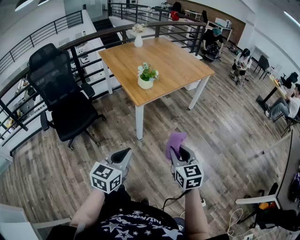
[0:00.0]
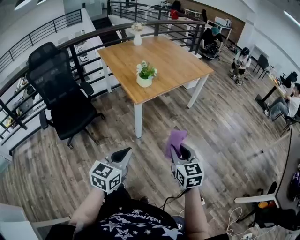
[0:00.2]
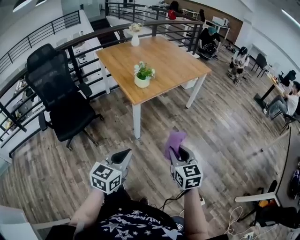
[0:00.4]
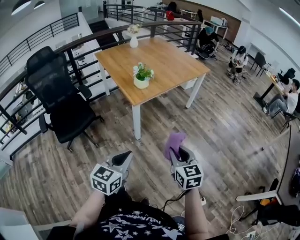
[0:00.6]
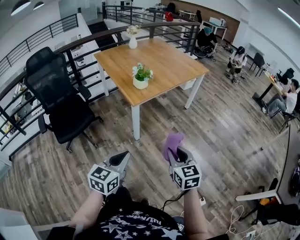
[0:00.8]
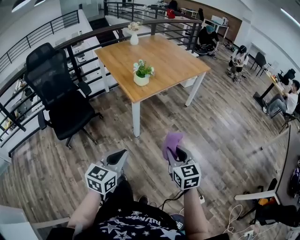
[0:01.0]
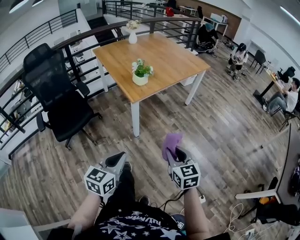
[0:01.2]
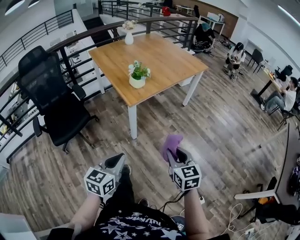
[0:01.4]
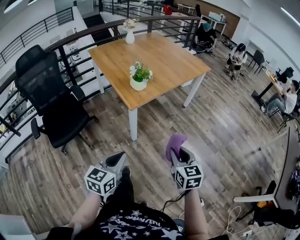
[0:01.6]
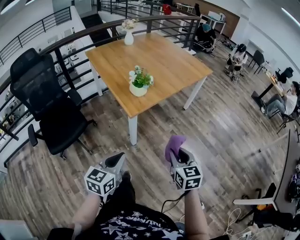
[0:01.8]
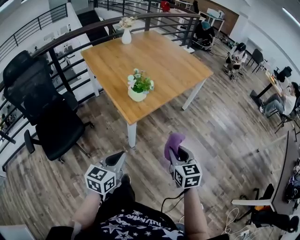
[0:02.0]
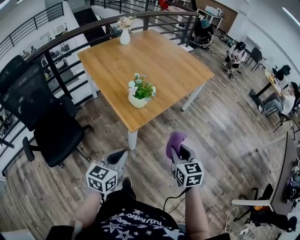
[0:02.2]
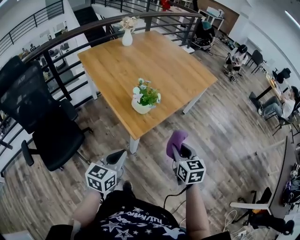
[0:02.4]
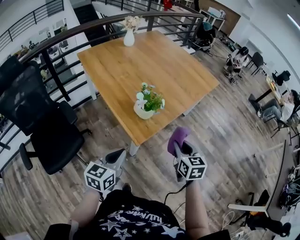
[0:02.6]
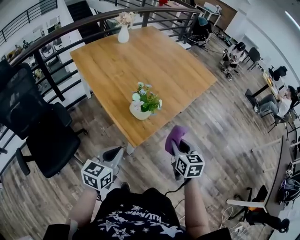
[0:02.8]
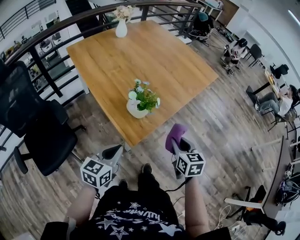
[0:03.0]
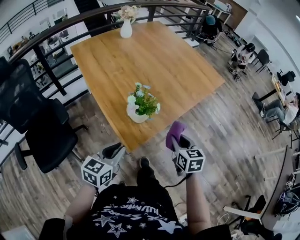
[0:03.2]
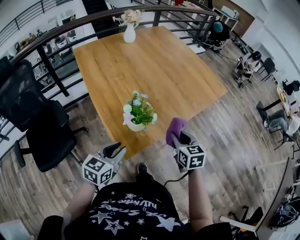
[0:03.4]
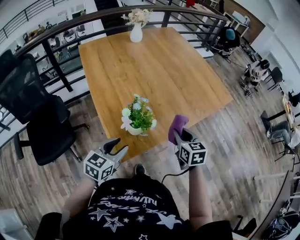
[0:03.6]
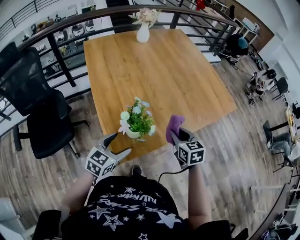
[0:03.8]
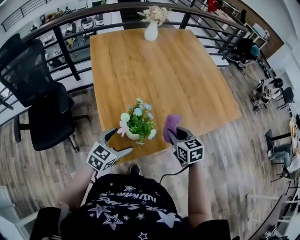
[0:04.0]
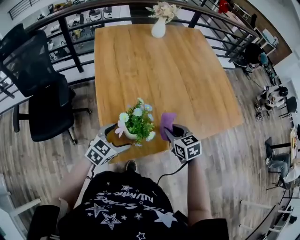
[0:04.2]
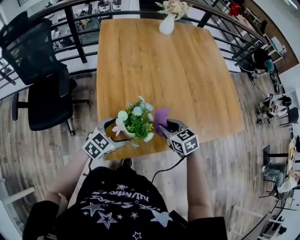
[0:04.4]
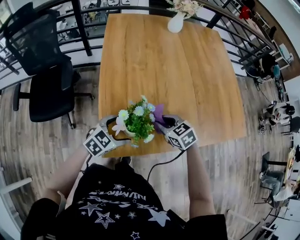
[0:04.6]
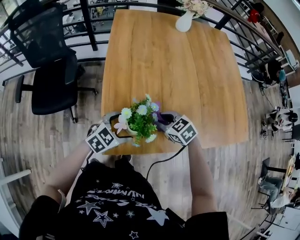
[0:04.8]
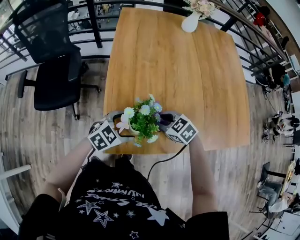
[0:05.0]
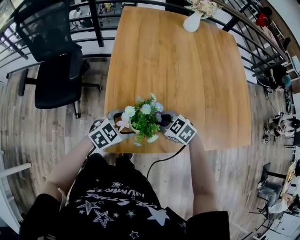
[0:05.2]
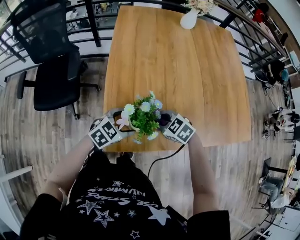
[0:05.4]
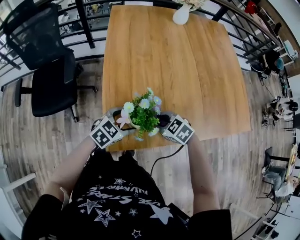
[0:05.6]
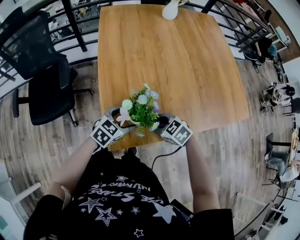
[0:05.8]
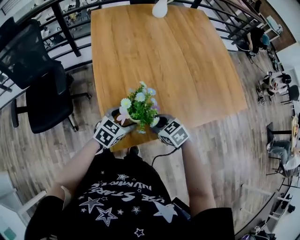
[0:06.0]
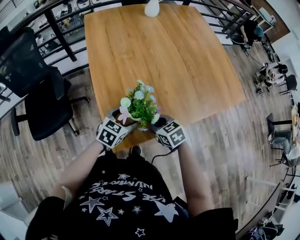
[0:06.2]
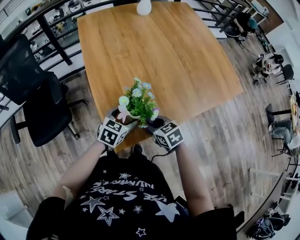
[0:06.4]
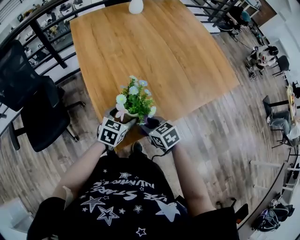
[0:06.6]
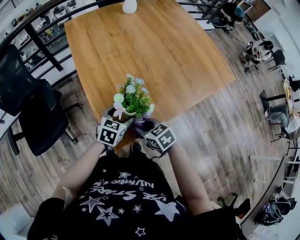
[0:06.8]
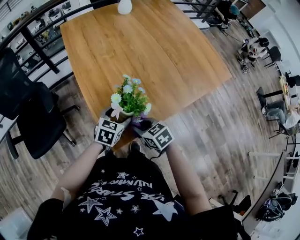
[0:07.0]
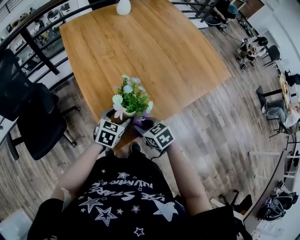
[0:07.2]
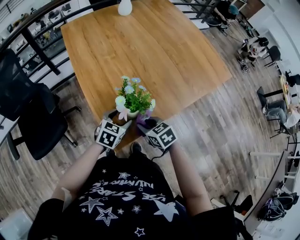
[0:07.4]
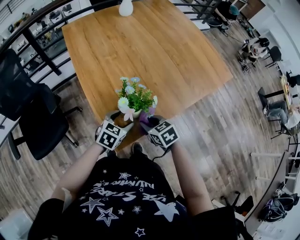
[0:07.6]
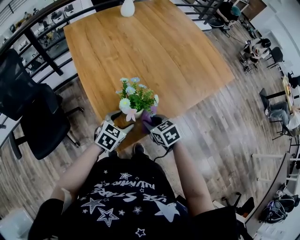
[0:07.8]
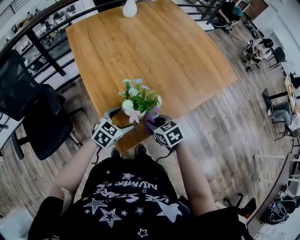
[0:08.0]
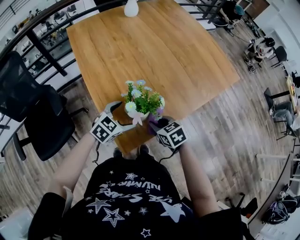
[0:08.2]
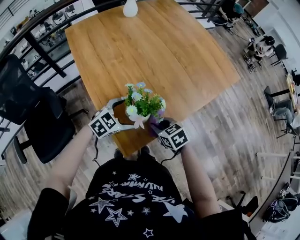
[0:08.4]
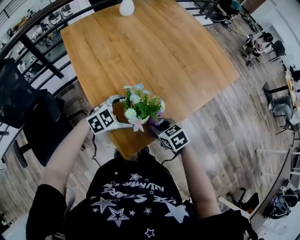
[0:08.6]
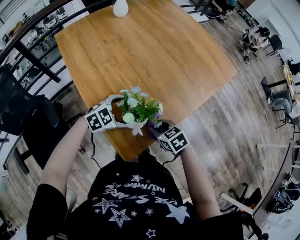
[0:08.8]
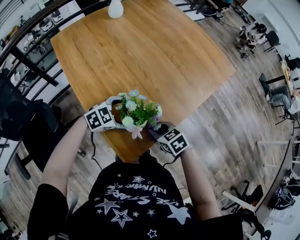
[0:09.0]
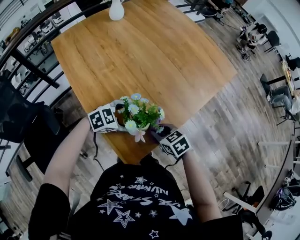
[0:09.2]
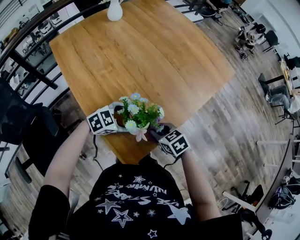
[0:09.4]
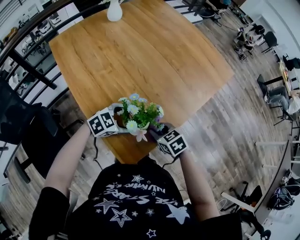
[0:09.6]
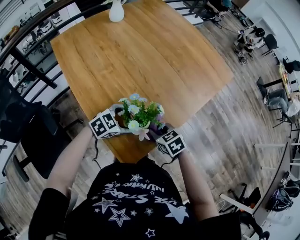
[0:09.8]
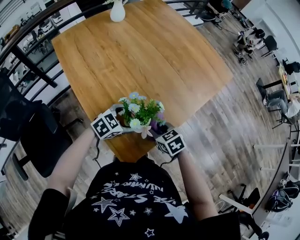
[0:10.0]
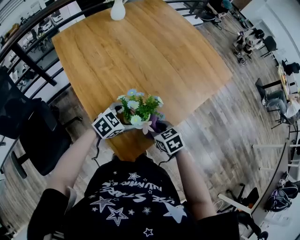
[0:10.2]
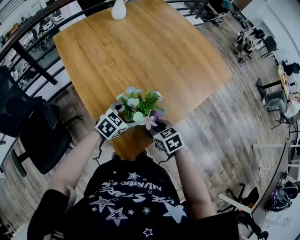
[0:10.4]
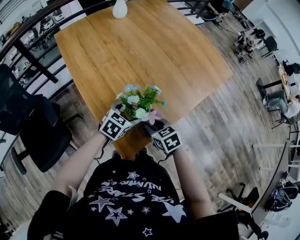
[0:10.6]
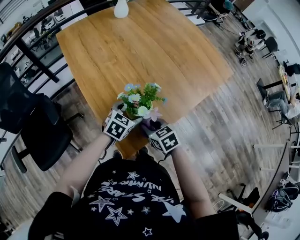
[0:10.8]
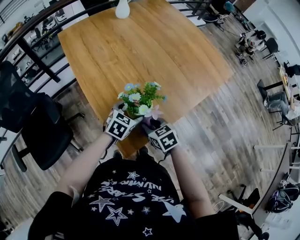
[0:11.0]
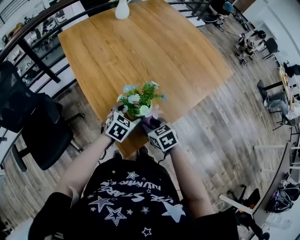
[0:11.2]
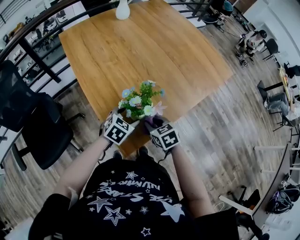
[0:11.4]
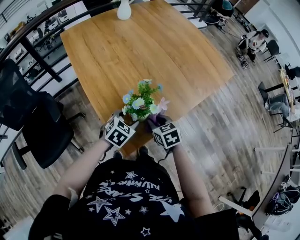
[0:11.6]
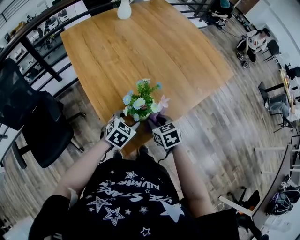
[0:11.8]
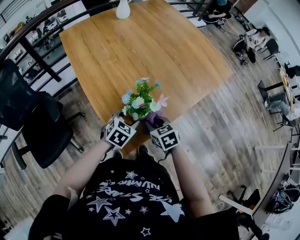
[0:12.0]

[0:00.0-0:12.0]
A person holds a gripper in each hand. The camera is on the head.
0:00.0 to 0:01.6: The grippers both shift forward by about 5 cm.
0:01.6 to 0:03.0: Both grippers move forward, some 30 cm.
0:03.0 to 0:04.4: The right gripper moves some 30 cm, and rotates some 60 degrees, while the left gripper moves some 25 cm, and opens.
0:04.4 to 0:06.0: The right gripper moves about 10 cm.
0:06.0 to 0:07.6: The right gripper swivels approximately 20 degrees.
0:07.6 to 0:09.0: The left gripper changes place by about 5 cm, swivels about 40 degrees, and opens its fingers.
0:09.0 to 0:10.4: The left gripper changes its angle by roughly 20 degrees.
0:10.4 to 0:12.0: The left gripper moves backward, roughly 5 cm.

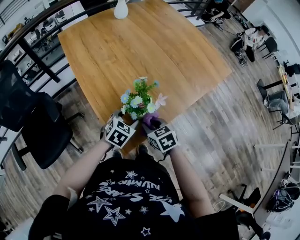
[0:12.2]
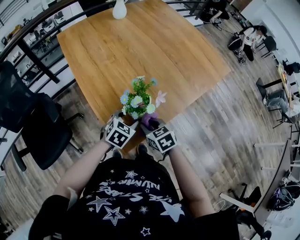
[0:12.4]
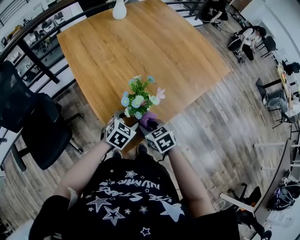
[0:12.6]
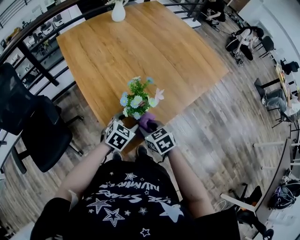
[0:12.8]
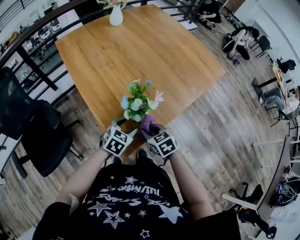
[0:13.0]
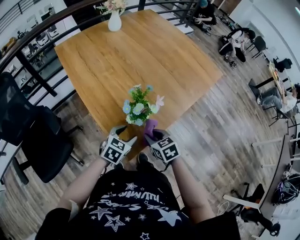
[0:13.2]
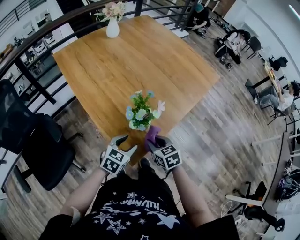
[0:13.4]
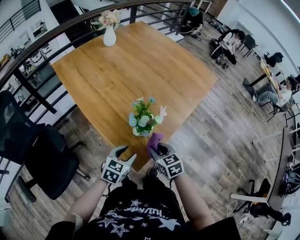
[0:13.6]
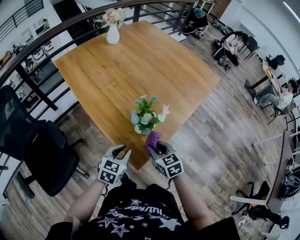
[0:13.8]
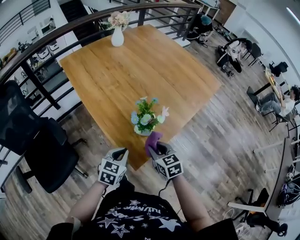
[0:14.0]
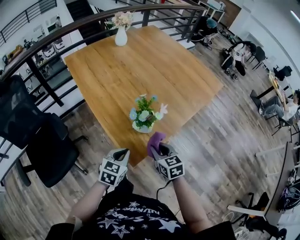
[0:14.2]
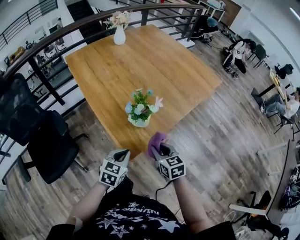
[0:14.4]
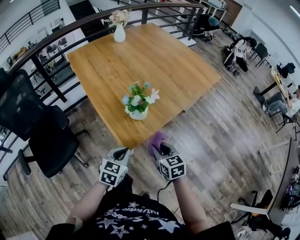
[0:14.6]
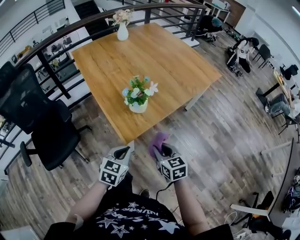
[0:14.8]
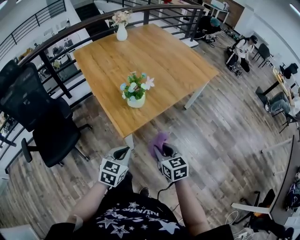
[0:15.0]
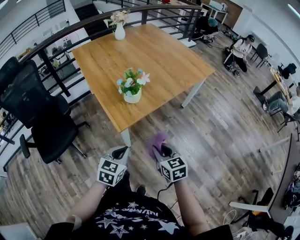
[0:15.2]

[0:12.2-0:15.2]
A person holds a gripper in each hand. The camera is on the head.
0:12.2 to 0:13.8: The left gripper is displaced backward and to the left by roughly 10 cm. Meanwhile the right gripper changes place by approximately 5 cm.
0:13.8 to 0:15.2: Both grippers travel together backward and to the right, some 25 cm.

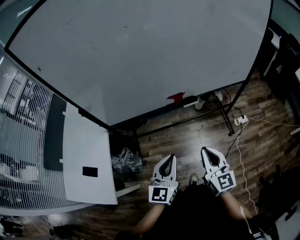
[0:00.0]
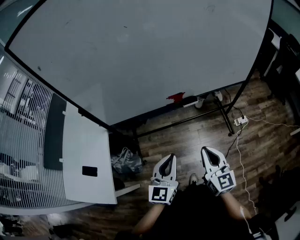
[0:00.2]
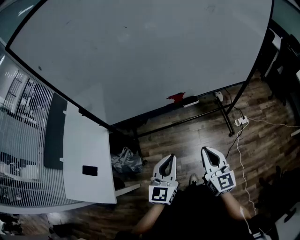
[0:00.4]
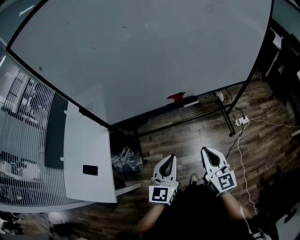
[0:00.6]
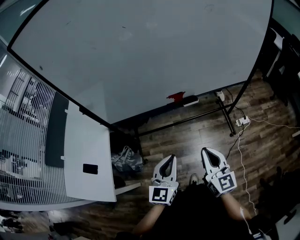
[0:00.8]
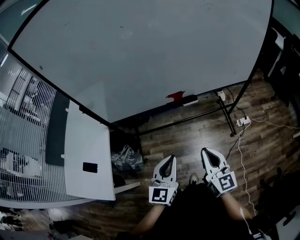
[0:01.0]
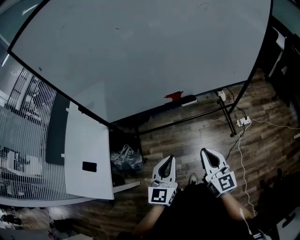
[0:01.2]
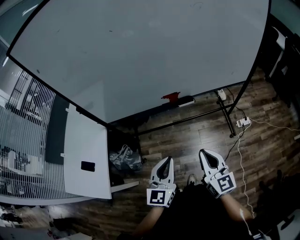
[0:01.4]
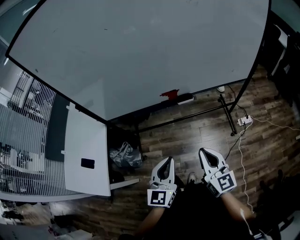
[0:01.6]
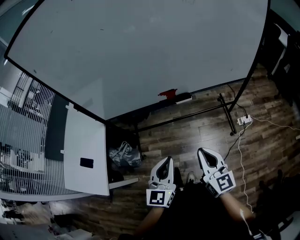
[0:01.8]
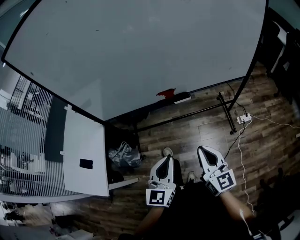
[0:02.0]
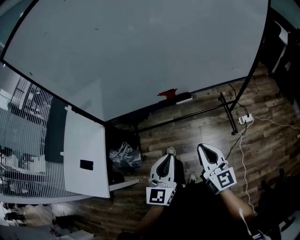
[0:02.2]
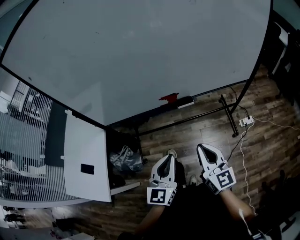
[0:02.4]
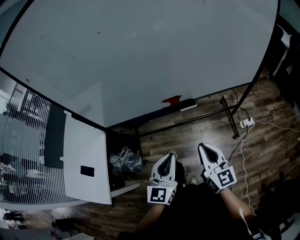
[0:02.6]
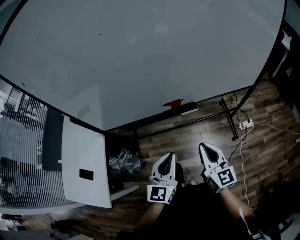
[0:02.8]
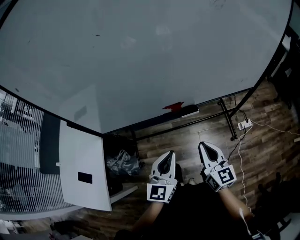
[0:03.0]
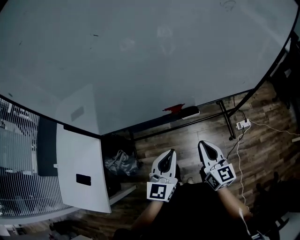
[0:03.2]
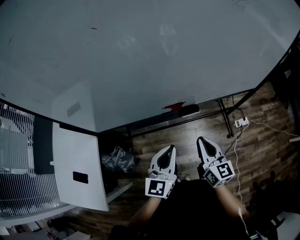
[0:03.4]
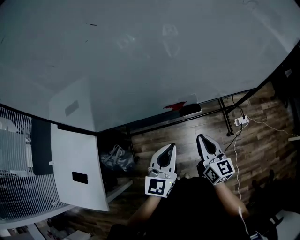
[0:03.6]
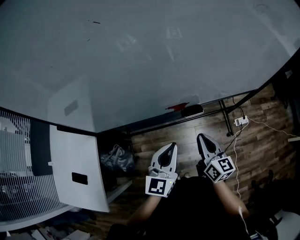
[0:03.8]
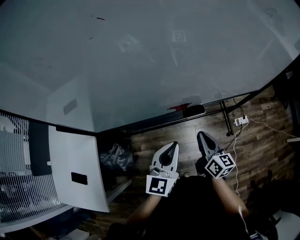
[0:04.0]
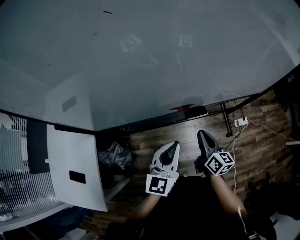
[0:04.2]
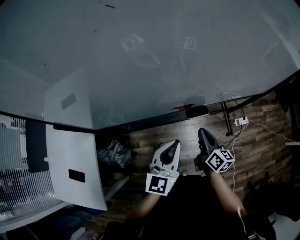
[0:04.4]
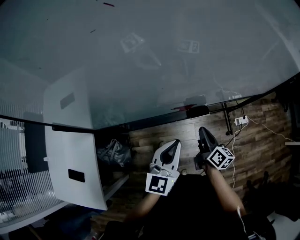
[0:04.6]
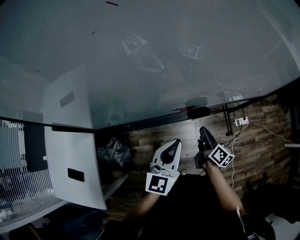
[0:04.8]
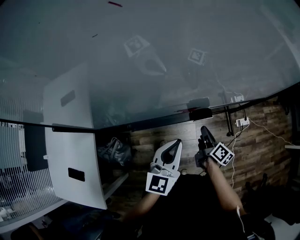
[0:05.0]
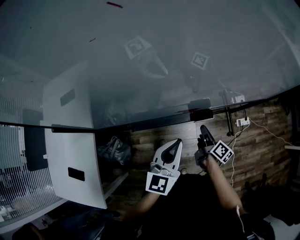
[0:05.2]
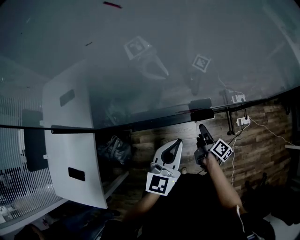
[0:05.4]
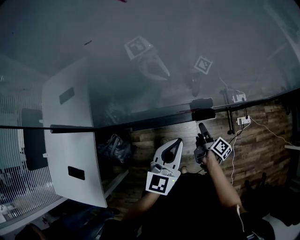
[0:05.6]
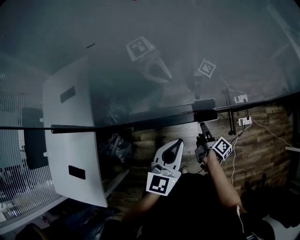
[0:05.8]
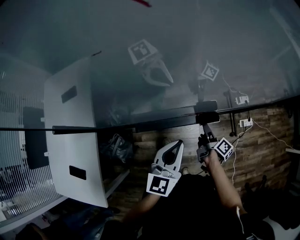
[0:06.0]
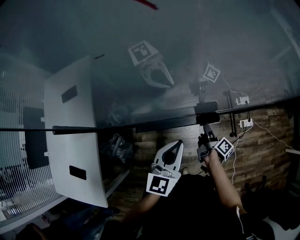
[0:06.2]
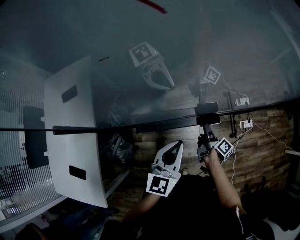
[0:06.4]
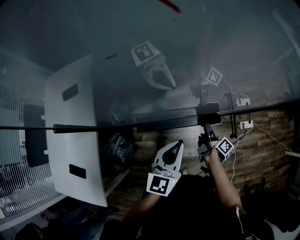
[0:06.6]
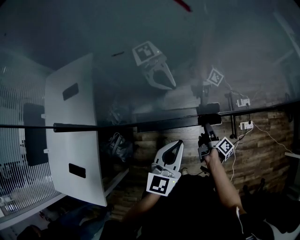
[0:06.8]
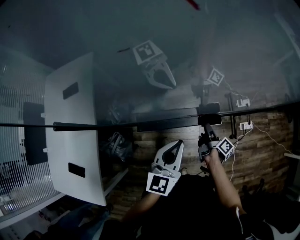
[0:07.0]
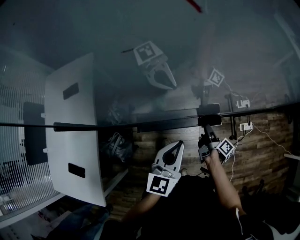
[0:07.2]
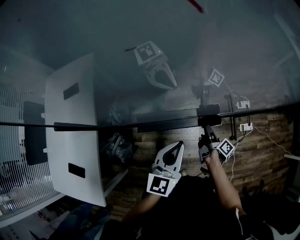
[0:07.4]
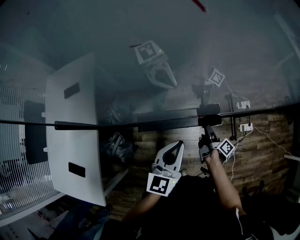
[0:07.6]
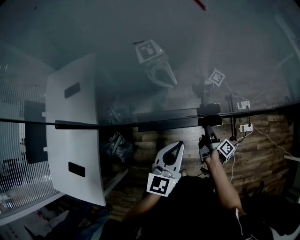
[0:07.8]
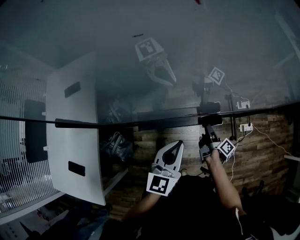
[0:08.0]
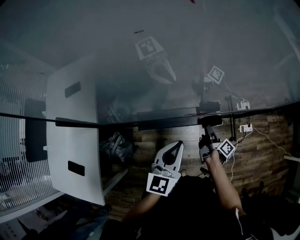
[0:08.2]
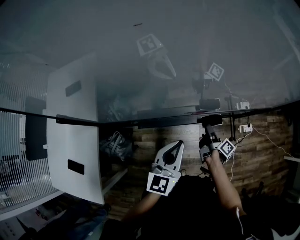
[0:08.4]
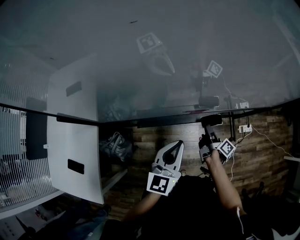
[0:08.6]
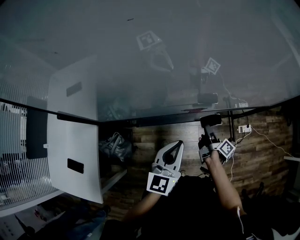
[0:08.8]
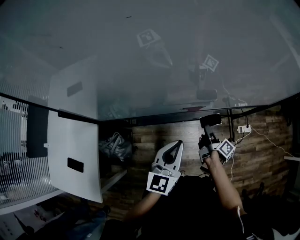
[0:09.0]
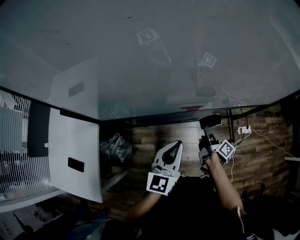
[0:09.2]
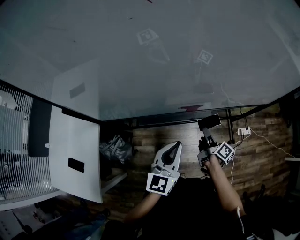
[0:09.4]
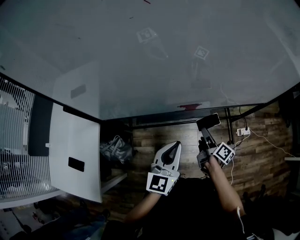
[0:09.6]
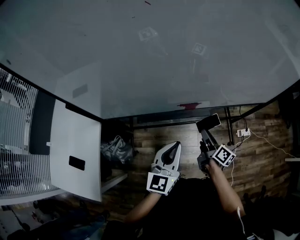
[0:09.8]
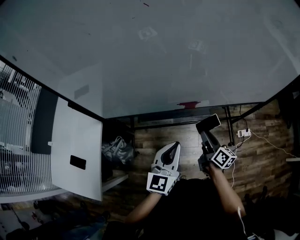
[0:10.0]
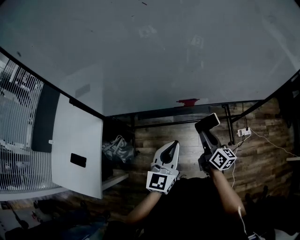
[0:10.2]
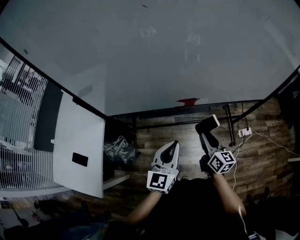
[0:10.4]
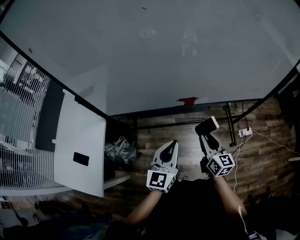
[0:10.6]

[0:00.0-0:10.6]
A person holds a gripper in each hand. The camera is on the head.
0:00.0 to 0:01.6: Both grippers move to the right, about 5 cm.
0:01.6 to 0:03.0: The two grippers go approximately 15 cm forward.
0:03.0 to 0:04.6: The right gripper moves downward and forward, approximately 20 cm, and turns by some 40 degrees; the left gripper travels forward by some 10 cm.
0:04.6 to 0:06.0: The right gripper is displaced downward by some 10 cm, turns by roughly 30 degrees, and opens up.
0:06.0 to 0:09.0: The grippers make only small movements.
0:09.0 to 0:10.6: The right gripper goes roughly 15 cm upward and backward, and rolls counterclockwise, seen from behind, by about 60 degrees. Meanwhile the left gripper goes some 10 cm backward.
